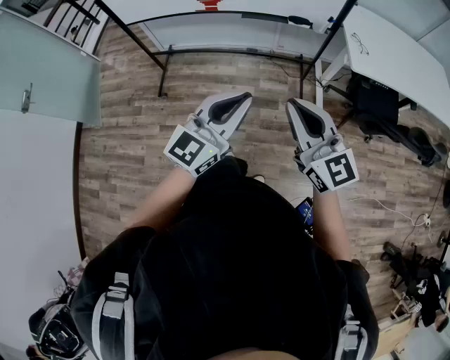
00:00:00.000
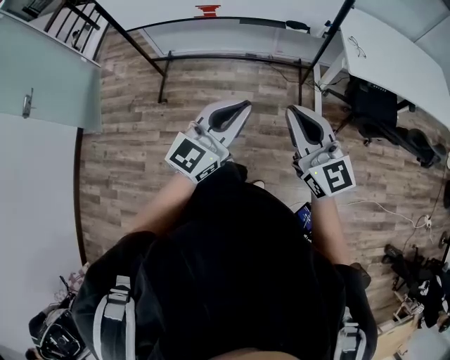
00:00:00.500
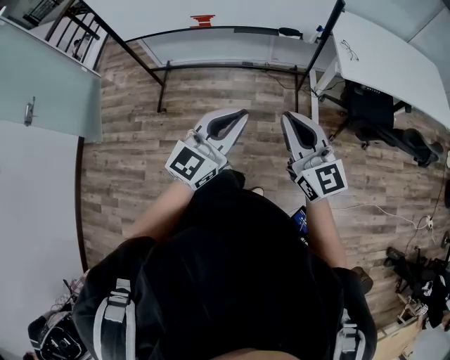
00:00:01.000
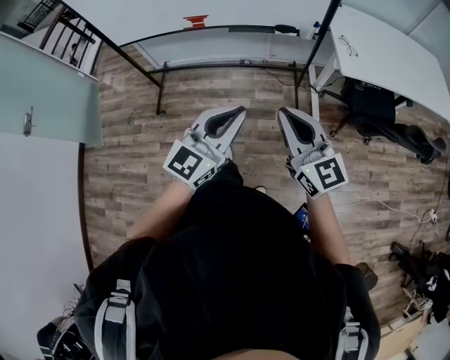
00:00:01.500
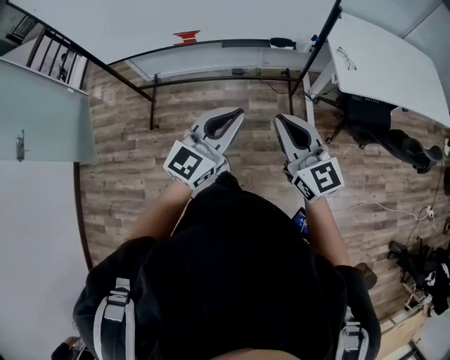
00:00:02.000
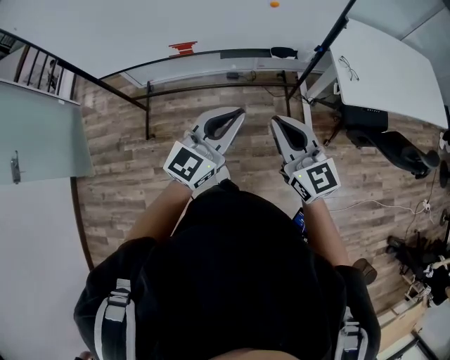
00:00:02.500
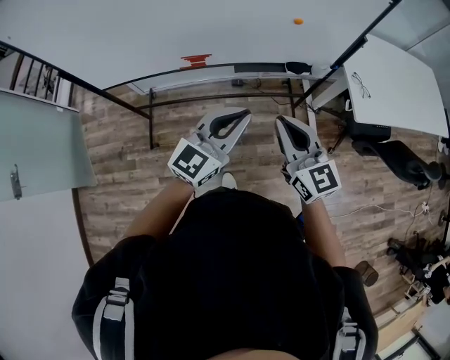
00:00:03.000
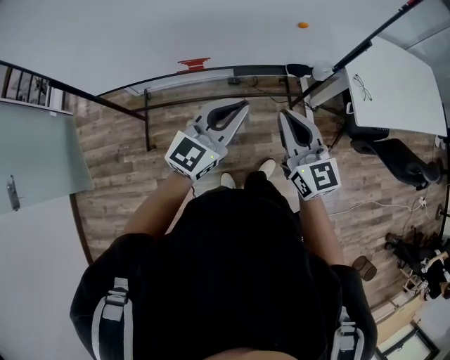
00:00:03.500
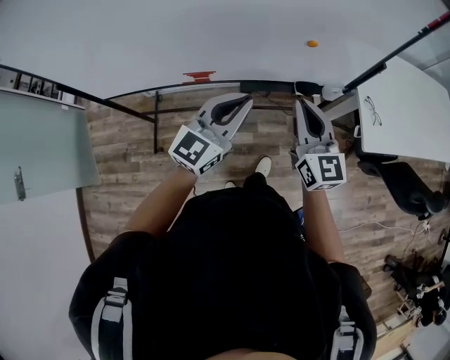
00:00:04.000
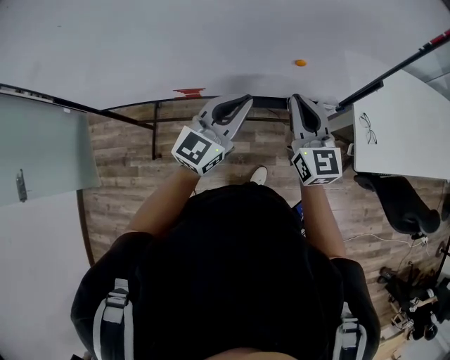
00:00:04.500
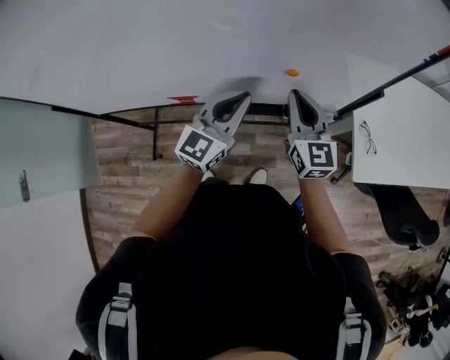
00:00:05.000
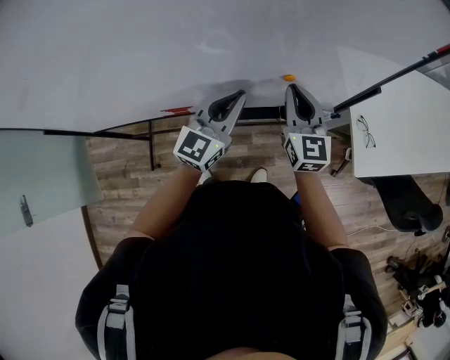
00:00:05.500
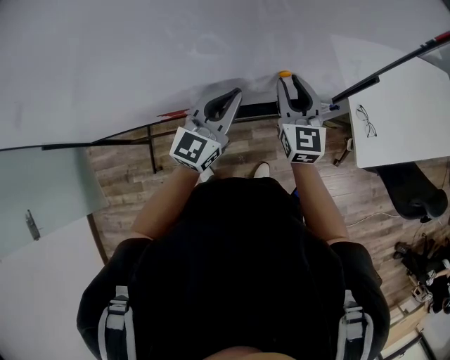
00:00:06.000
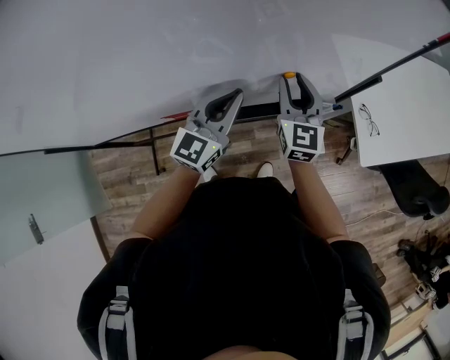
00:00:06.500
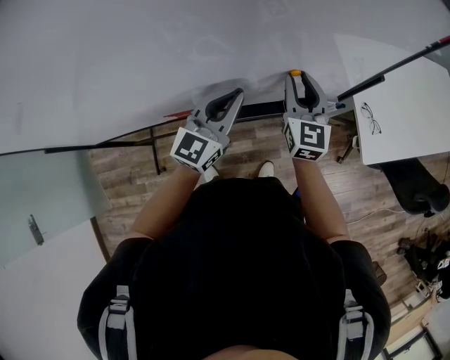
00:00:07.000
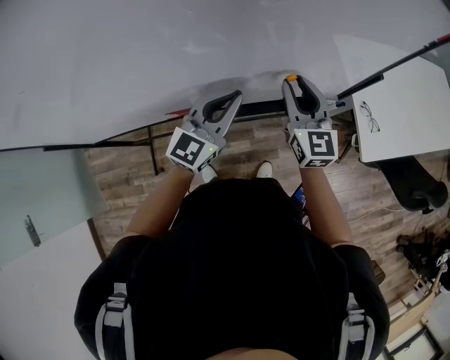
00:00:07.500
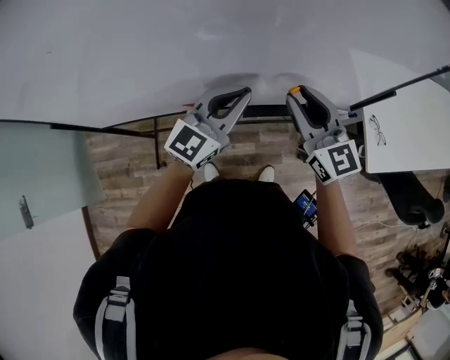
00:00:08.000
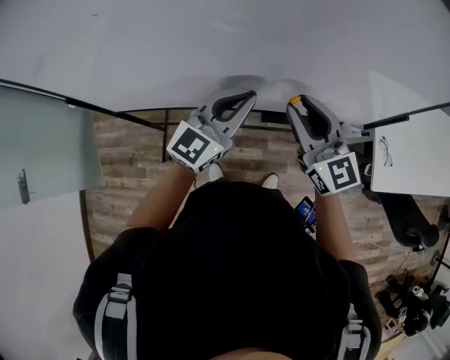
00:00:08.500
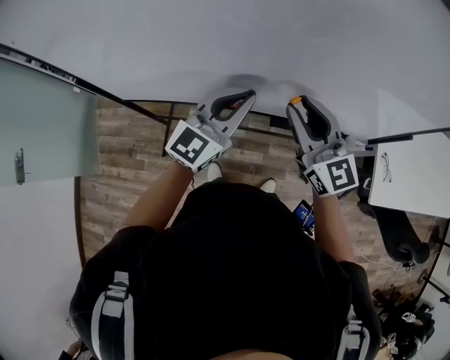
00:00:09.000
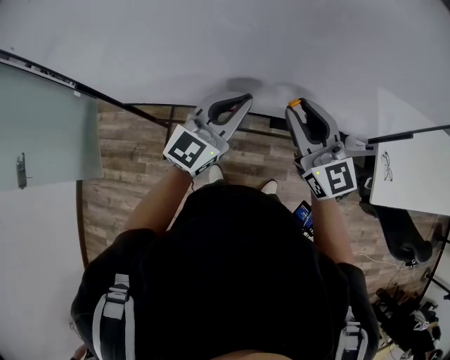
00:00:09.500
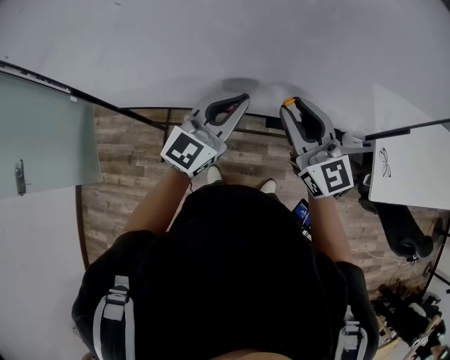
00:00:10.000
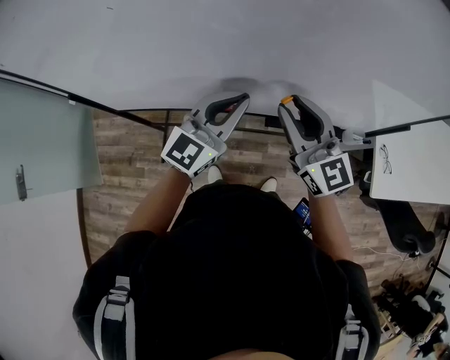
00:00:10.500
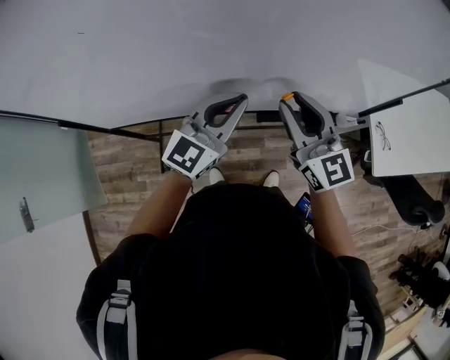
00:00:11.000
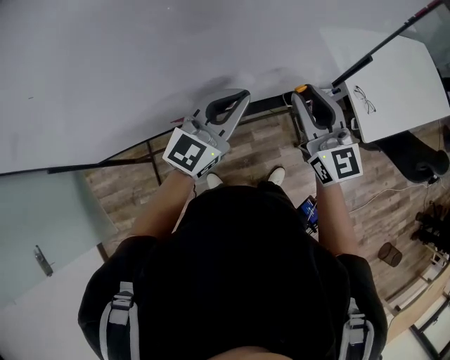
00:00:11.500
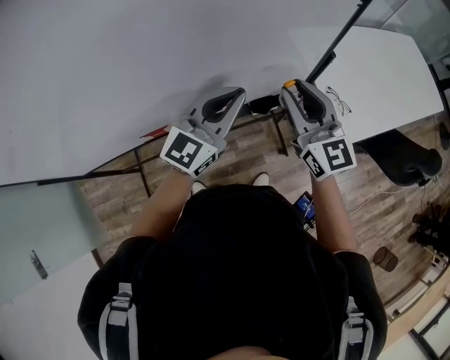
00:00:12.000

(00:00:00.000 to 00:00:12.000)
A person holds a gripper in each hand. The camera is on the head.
00:00:00.000 - 00:00:02.000: Both grippers travel together forward, some 15 cm.
00:00:02.000 - 00:00:04.000: The left gripper goes some 35 cm forward and to the left, while the right gripper is displaced forward by about 30 cm.
00:00:04.000 - 00:00:06.000: Both grippers travel together forward, some 20 cm. The right gripper opens up.
00:00:06.000 - 00:00:08.000: The left gripper heads to the left and backward, covering about 10 cm. Meanwhile the right gripper moves backward, to the left and upward, roughly 15 cm, and rotates roughly 20 degrees.
00:00:08.000 - 00:00:10.000: The grippers both shift to the left by approximately 10 cm.
00:00:10.000 - 00:00:12.000: Both grippers travel together to the right, about 30 cm. The right gripper changes its angle by roughly 30 degrees. Meanwhile the left gripper turns by approximately 20 degrees.

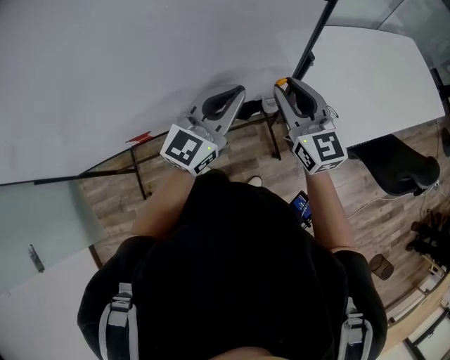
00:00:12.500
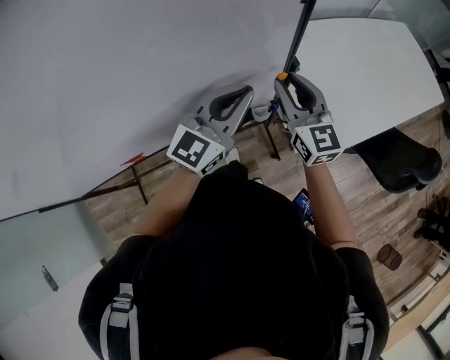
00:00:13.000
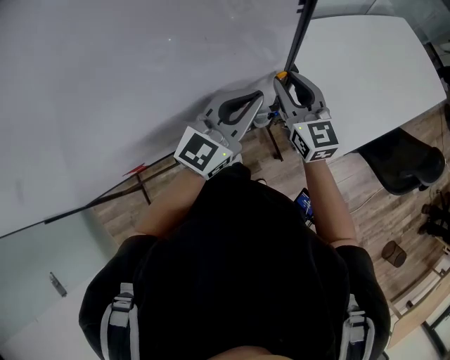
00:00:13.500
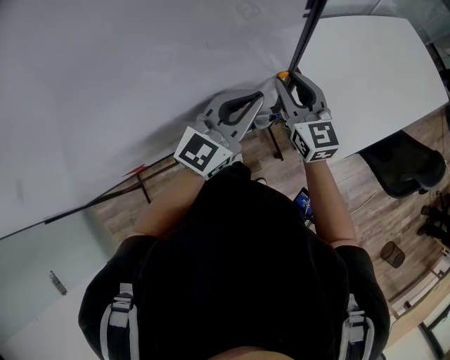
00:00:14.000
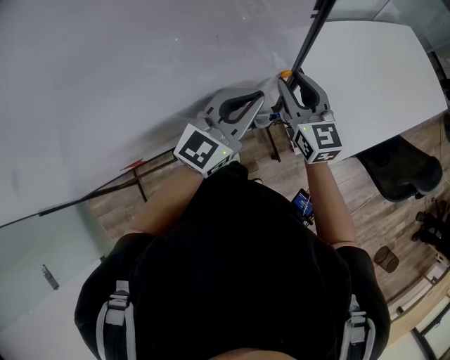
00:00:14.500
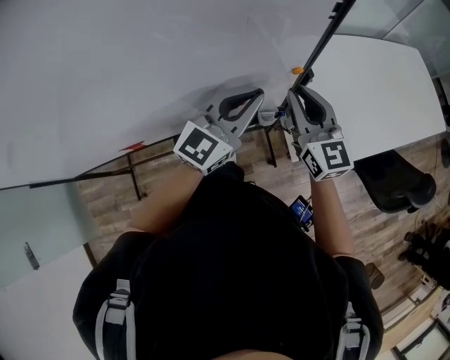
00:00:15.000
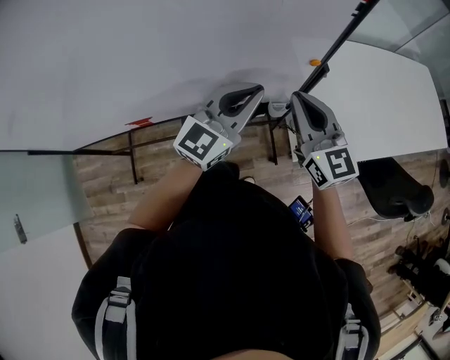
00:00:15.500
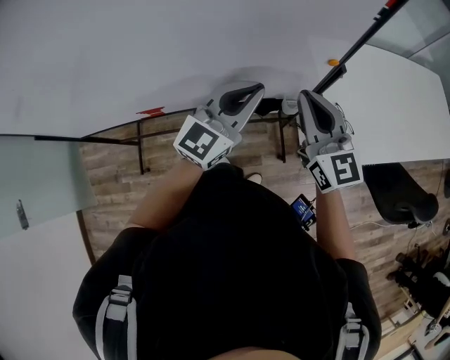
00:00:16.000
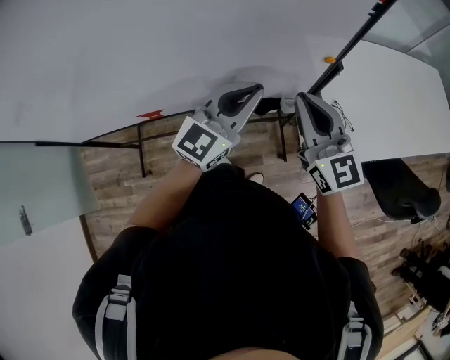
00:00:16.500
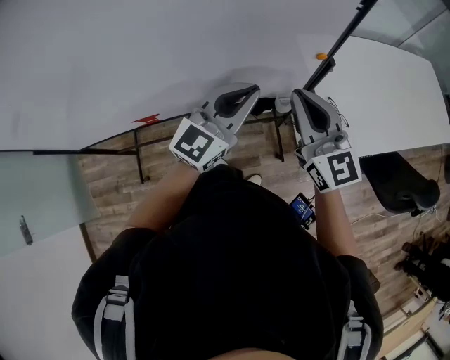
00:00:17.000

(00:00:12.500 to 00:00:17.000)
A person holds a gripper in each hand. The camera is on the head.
00:00:12.500 - 00:00:14.500: The right gripper heads forward, covering about 15 cm. The left gripper shifts approximately 15 cm forward and to the right.
00:00:14.500 - 00:00:17.000: The right gripper travels backward, to the left and upward by some 20 cm, and closes up. Meanwhile the left gripper goes some 15 cm backward and to the left.

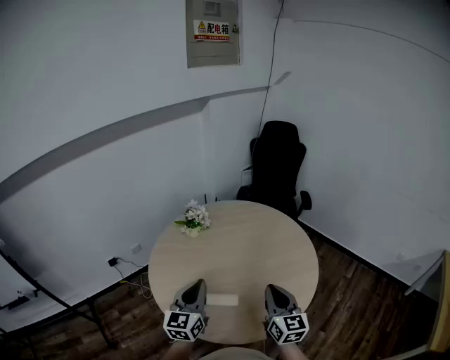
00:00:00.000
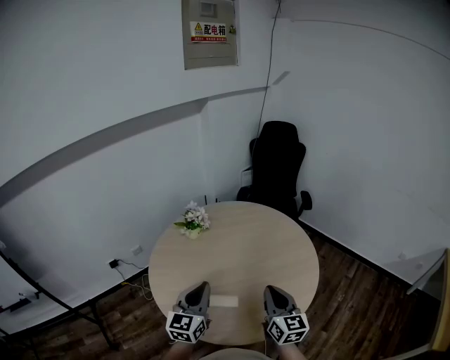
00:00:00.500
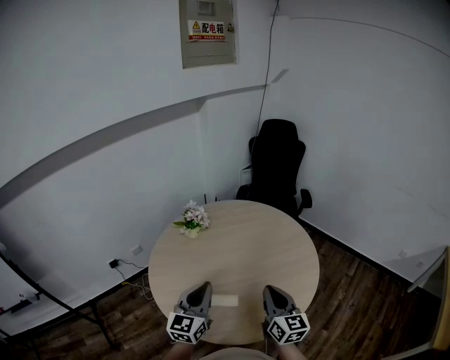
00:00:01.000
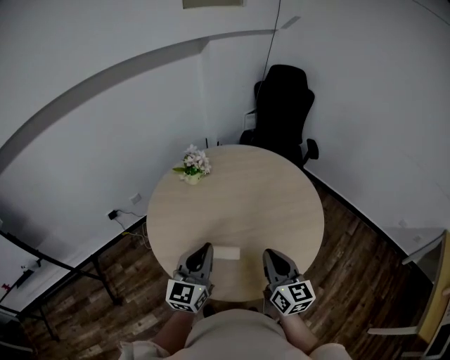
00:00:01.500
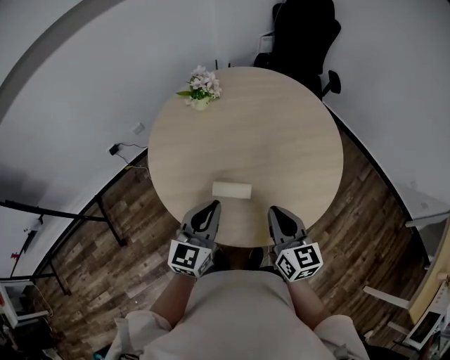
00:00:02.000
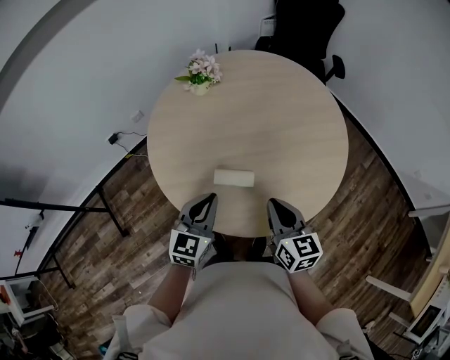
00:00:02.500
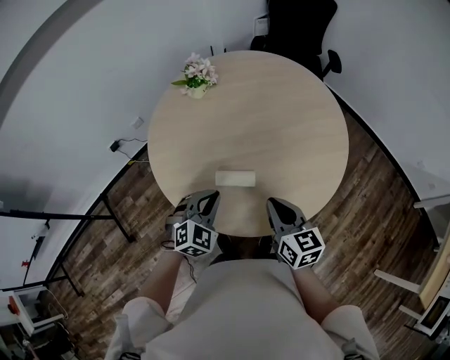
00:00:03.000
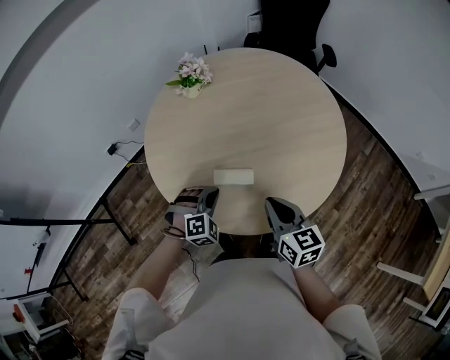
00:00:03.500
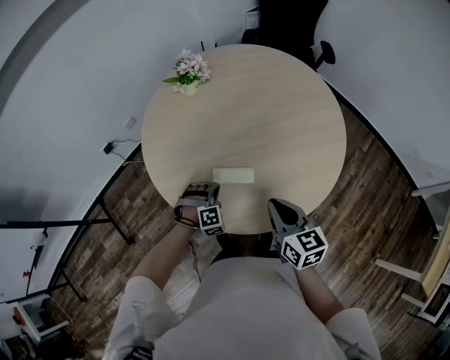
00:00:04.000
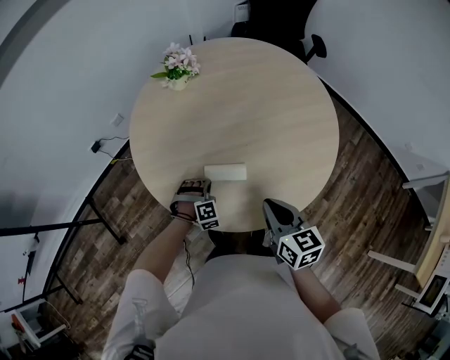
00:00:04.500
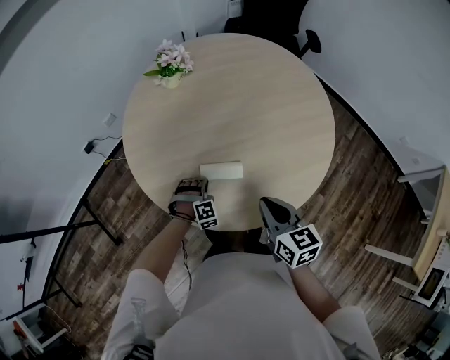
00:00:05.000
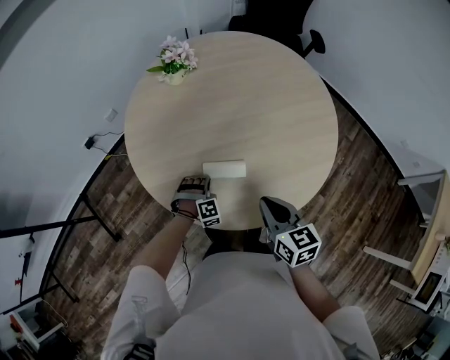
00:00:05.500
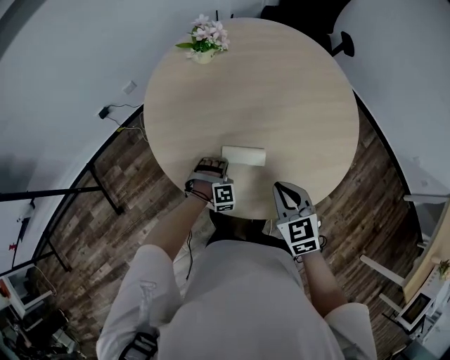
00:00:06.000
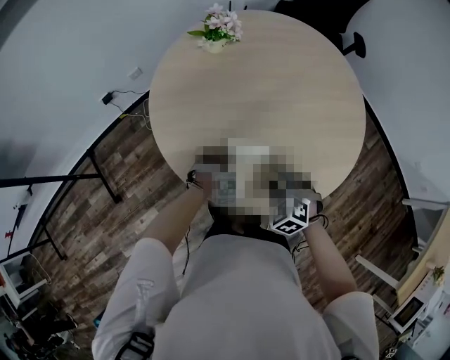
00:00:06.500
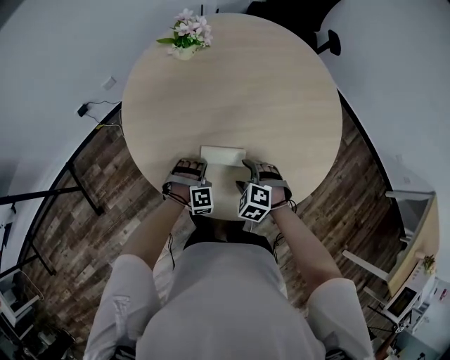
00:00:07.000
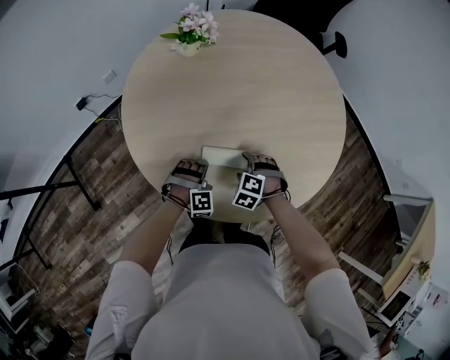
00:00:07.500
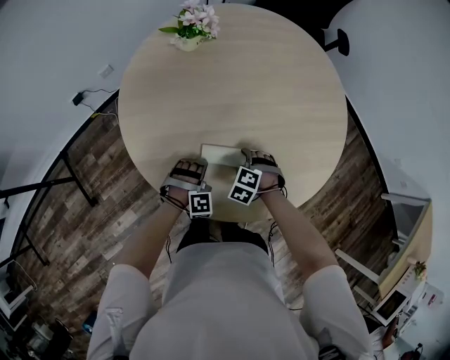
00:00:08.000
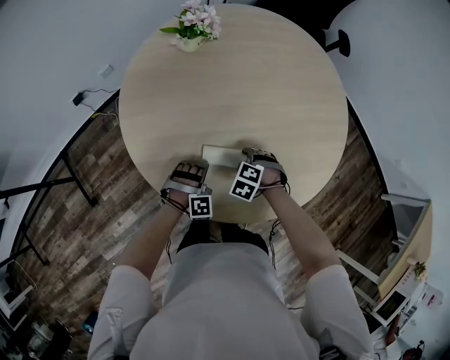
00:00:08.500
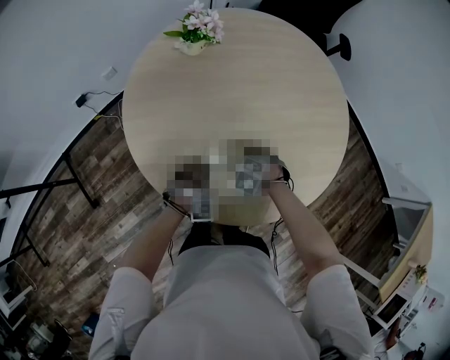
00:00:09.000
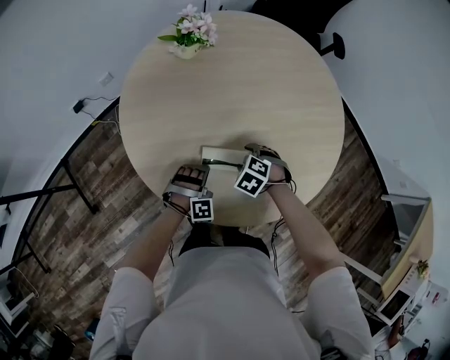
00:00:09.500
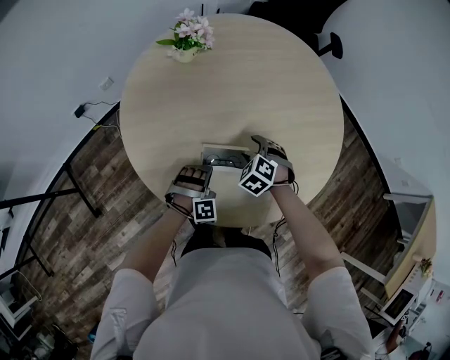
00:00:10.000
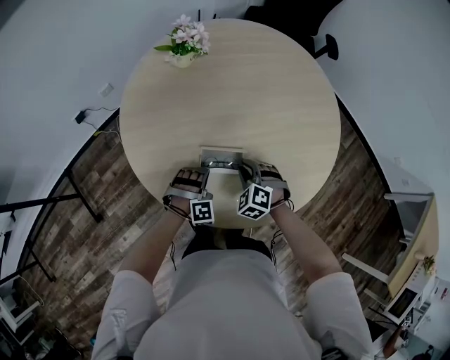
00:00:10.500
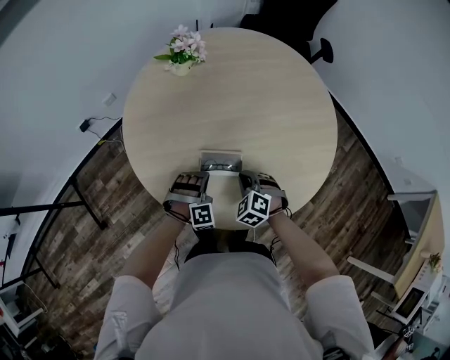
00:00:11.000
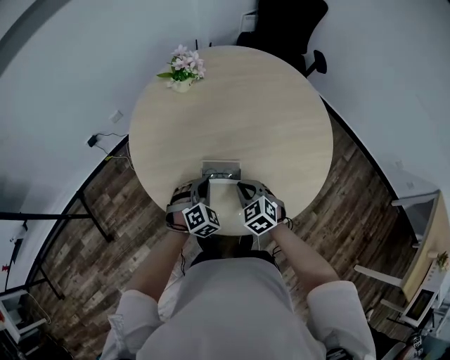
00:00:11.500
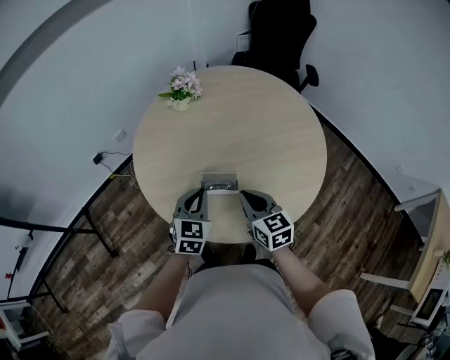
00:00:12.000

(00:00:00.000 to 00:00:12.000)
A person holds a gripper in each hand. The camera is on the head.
00:00:00.000 - 00:00:02.000: Both grippers move downward, some 10 cm.
00:00:02.000 - 00:00:04.000: The right gripper goes some 5 cm downward. Meanwhile the left gripper travels downward by about 25 cm, and rolls clockwise, seen from behind, by roughly 70 degrees.
00:00:04.000 - 00:00:06.000: The left gripper moves downward, approximately 5 cm. Meanwhile the right gripper changes place by roughly 5 cm, and swivels about 30 degrees.
00:00:06.000 - 00:00:08.000: The right gripper goes approximately 25 cm downward and forward, tips its fingers downward by approximately 40 degrees, and opens its fingers.
00:00:08.000 - 00:00:10.000: The right gripper moves upward, roughly 5 cm.
00:00:10.000 - 00:00:12.000: The left gripper heads upward, covering roughly 20 cm, and twists about 70 degrees counterclockwise, seen from behind. Meanwhile the right gripper moves upward and backward, roughly 20 cm, tilts its fingers roughly 40 degrees upward, and closes.
